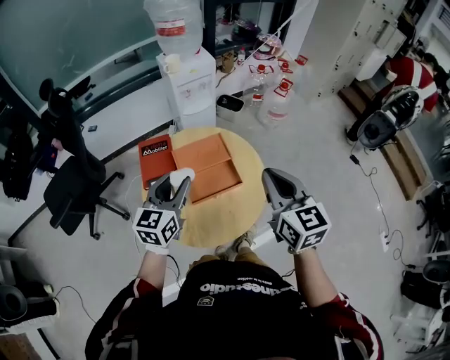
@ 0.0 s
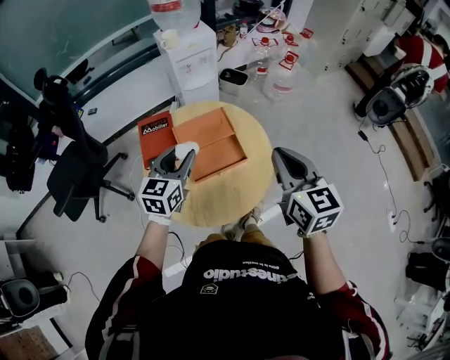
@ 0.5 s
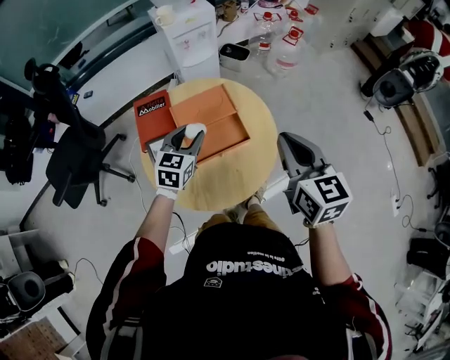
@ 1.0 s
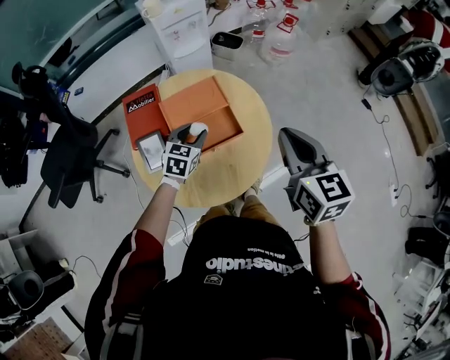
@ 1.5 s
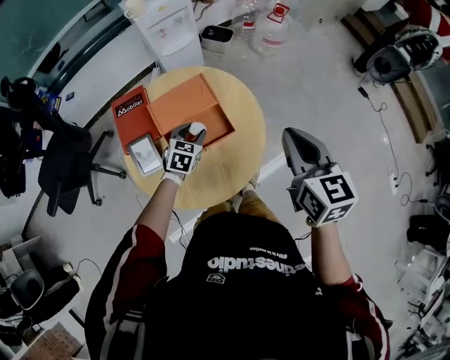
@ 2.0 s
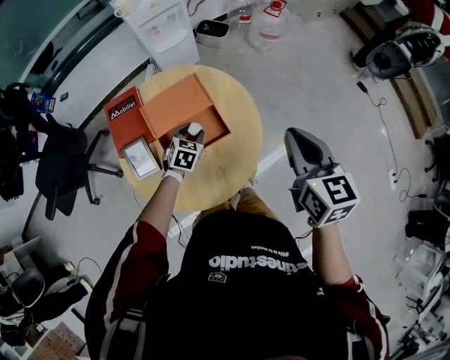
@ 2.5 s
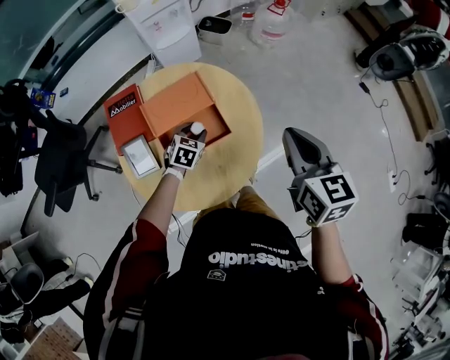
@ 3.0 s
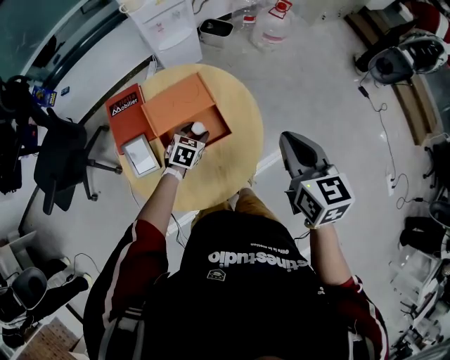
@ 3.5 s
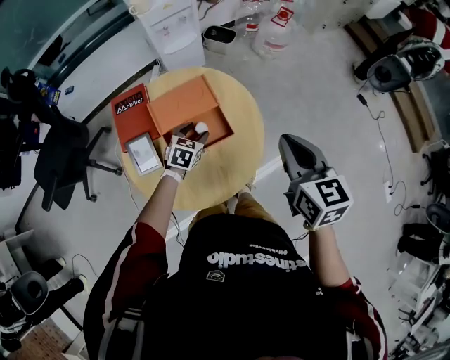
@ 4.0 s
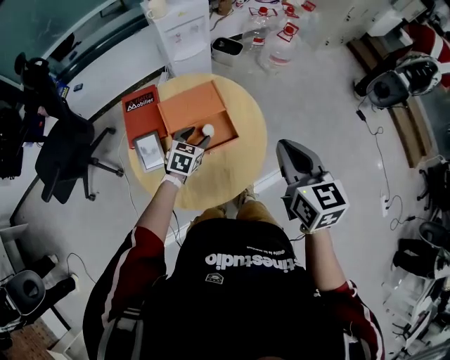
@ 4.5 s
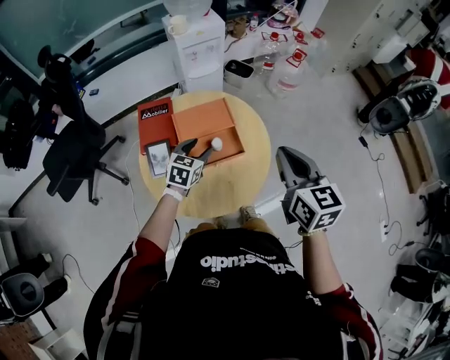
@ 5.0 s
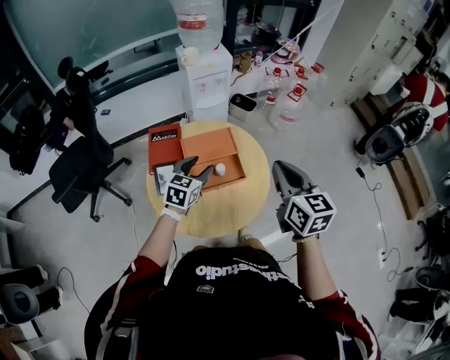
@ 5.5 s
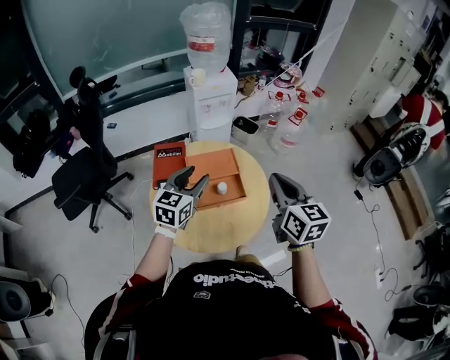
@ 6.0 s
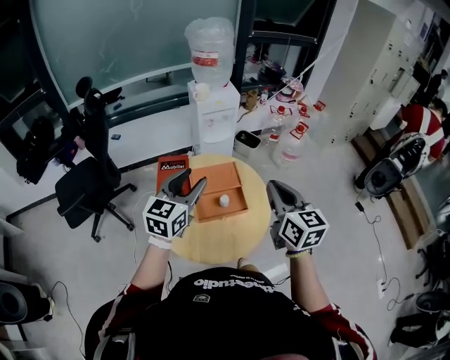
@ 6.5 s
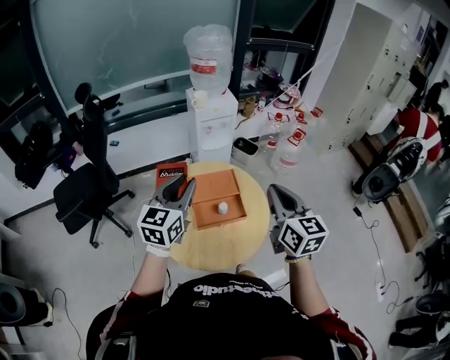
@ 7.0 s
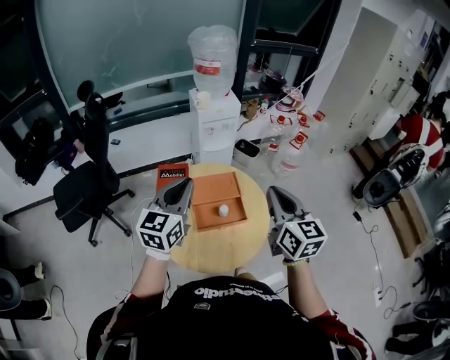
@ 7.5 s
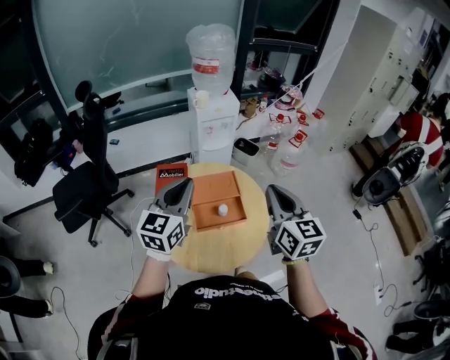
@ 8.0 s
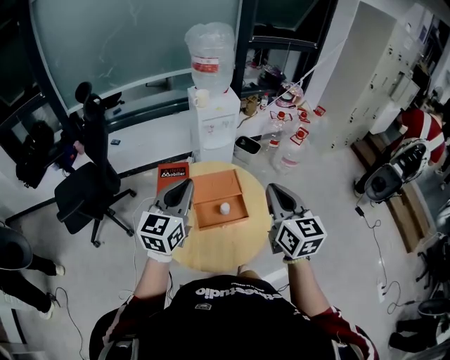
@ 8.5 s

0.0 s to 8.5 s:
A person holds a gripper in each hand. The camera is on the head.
0.0 to 2.0 s: The right gripper moves to the right and downward, approximately 10 cm. Meanwhile the left gripper shifts some 25 cm downward, and tips its fingers downward by roughly 30 degrees.
4.0 to 6.5 s: The right gripper shifts roughly 15 cm upward and to the left. The left gripper goes roughly 35 cm upward, and angles its fingers upward, by roughly 40 degrees.
6.5 to 8.5 s: The left gripper closes up.

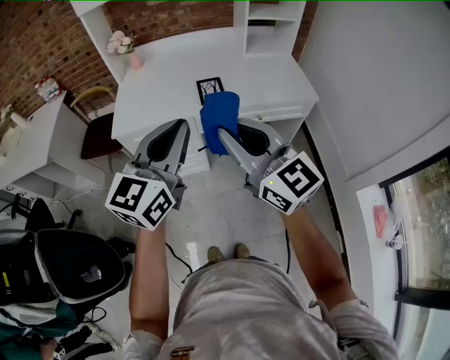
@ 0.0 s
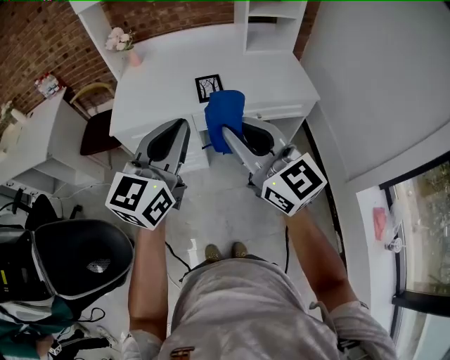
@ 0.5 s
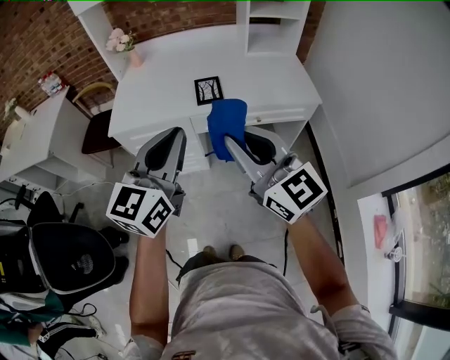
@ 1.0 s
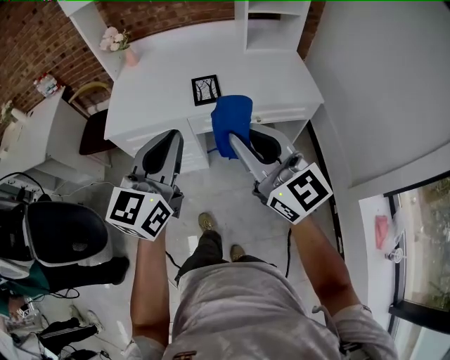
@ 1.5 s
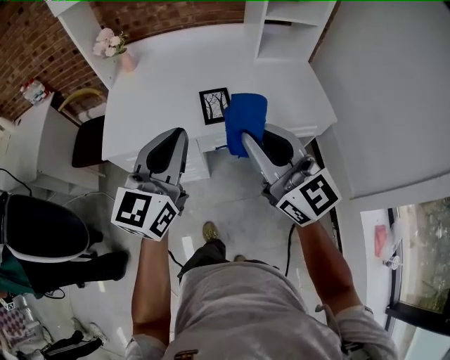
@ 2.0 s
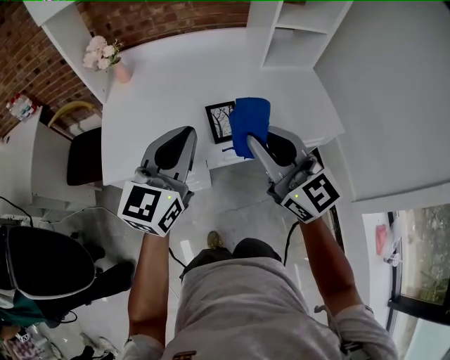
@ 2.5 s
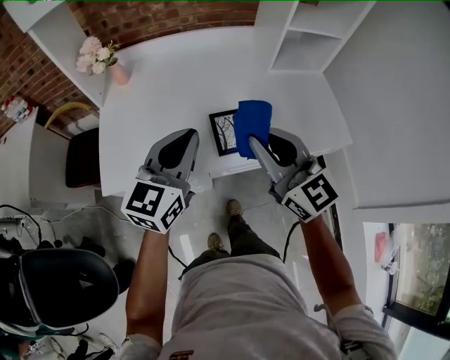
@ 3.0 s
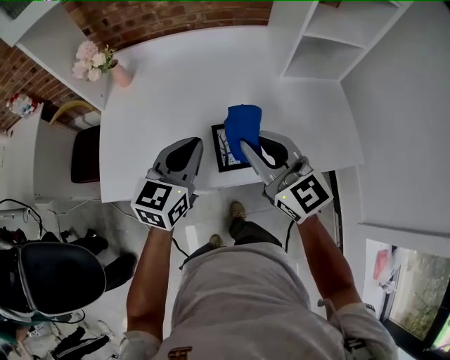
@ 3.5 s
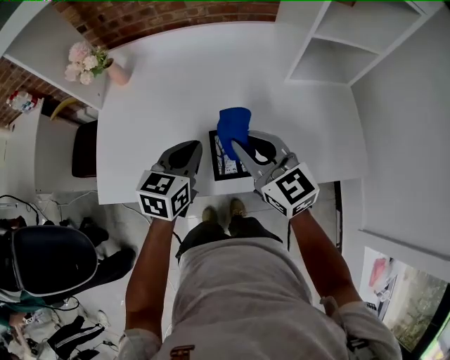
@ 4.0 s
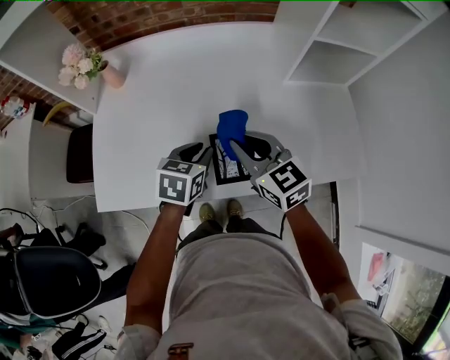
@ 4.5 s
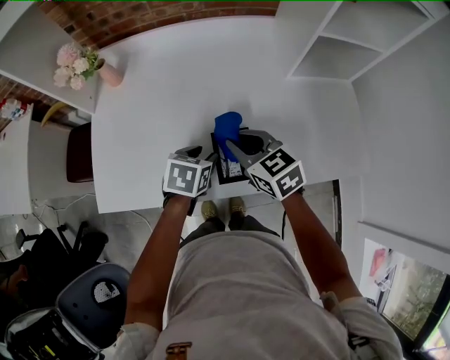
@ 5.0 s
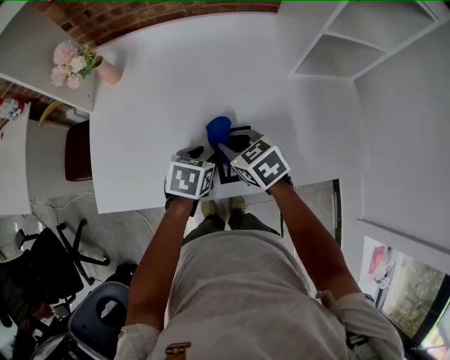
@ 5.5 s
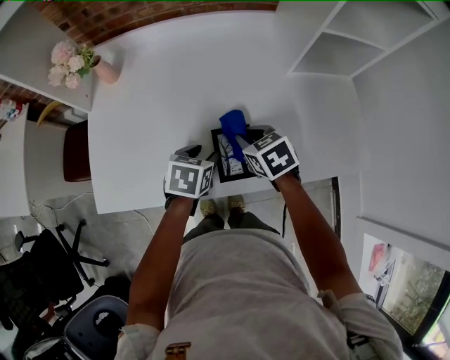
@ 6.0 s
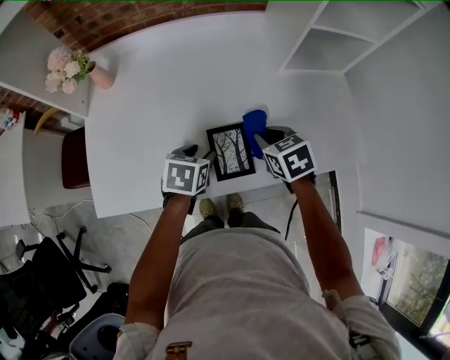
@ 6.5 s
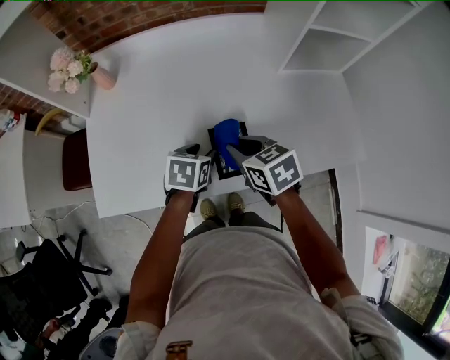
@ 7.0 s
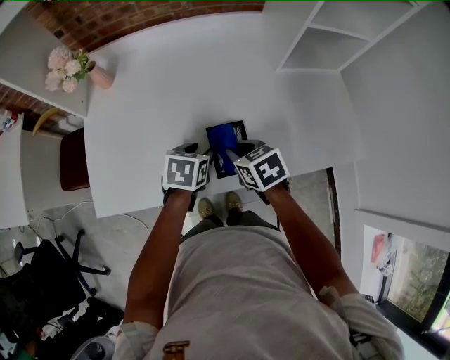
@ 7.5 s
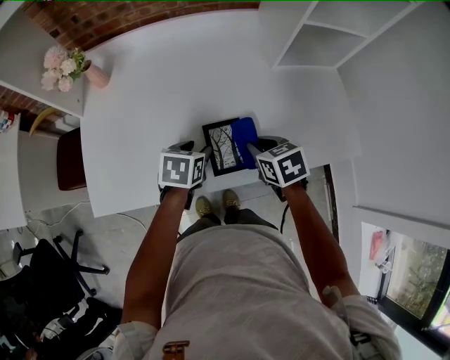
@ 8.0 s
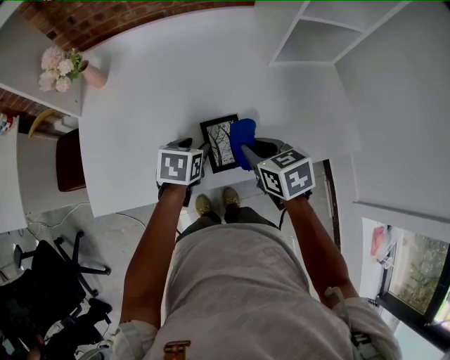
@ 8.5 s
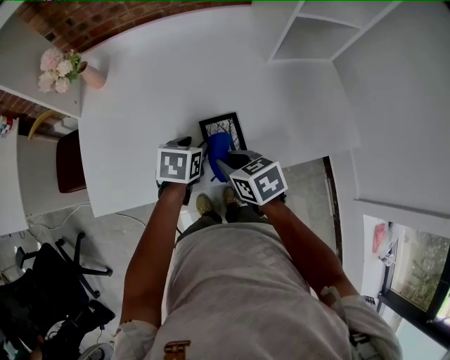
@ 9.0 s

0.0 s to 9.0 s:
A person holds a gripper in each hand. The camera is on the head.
0.0 to 2.0 s: The two grippers go roughly 15 cm forward.
2.0 to 4.5 s: Both grippers travel together forward and downward, some 40 cm. The right gripper rotates some 30 degrees; the left gripper angles its fingers downward, by approximately 50 degrees.
4.5 to 7.0 s: Both grippers move downward, some 5 cm. The right gripper reaches some 10 cm to the right, then returns, and rotates approximately 30 degrees, while the left gripper opens up.
7.0 to 9.0 s: The right gripper heads backward, covering roughly 5 cm, and reaches approximately 5 cm to the right, then returns.

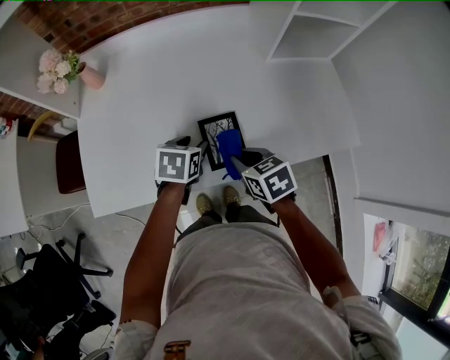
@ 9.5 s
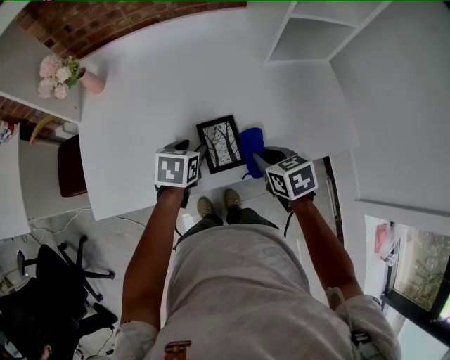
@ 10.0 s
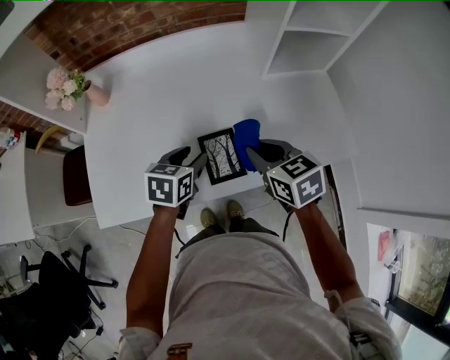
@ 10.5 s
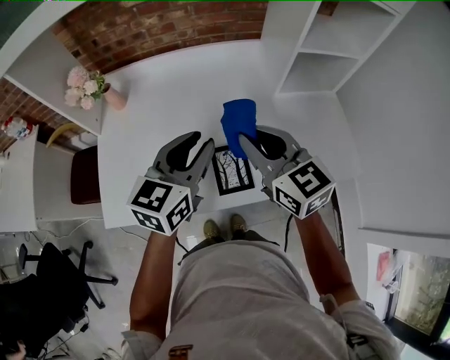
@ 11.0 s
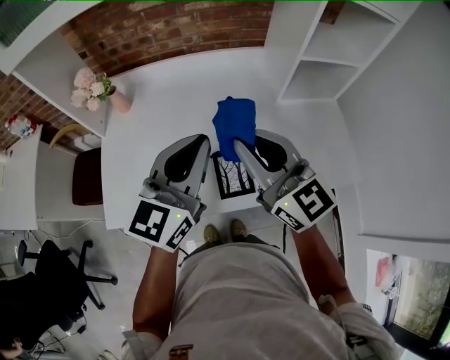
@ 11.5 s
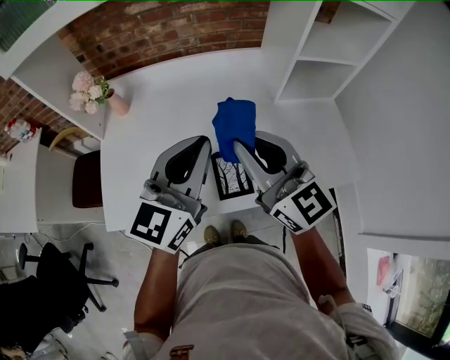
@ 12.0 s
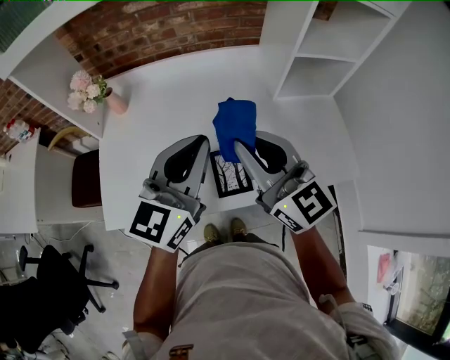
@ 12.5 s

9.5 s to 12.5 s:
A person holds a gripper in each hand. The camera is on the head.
9.5 to 11.0 s: Both grippers move upward, roughly 25 cm. The right gripper tilts its fingers roughly 40 degrees upward. Meanwhile the left gripper angles its fingers upward, by approximately 40 degrees.
11.0 to 12.5 s: The grippers both shift upward by roughly 5 cm. The left gripper closes.

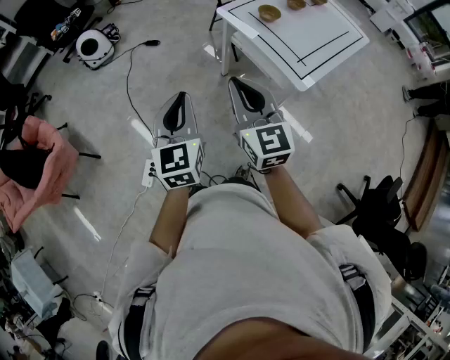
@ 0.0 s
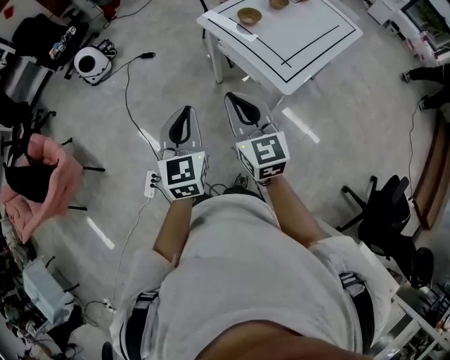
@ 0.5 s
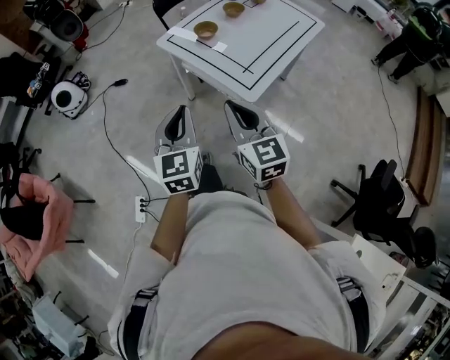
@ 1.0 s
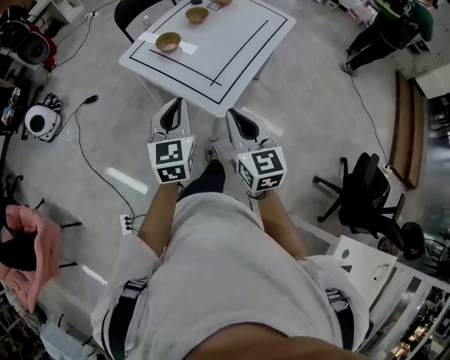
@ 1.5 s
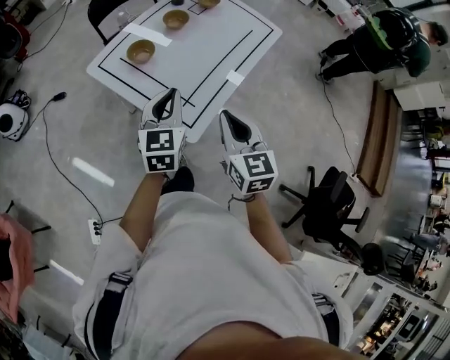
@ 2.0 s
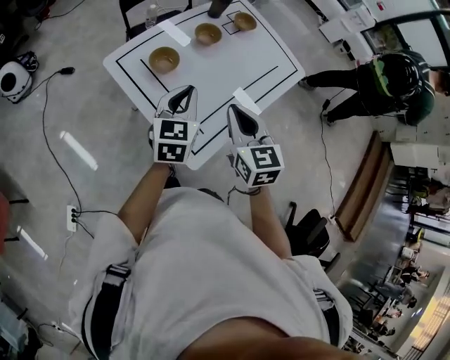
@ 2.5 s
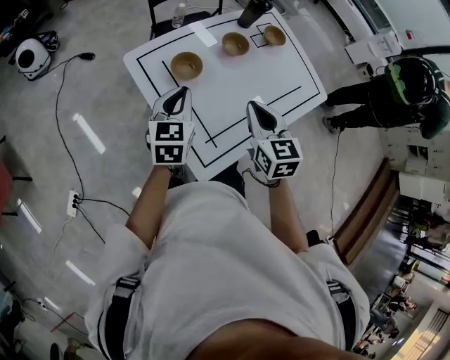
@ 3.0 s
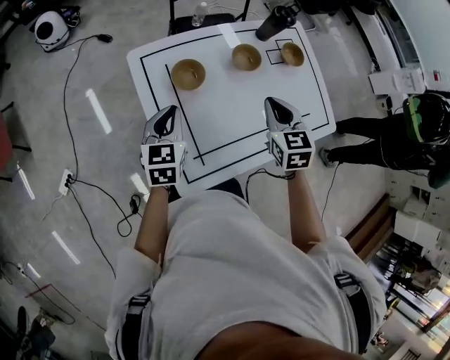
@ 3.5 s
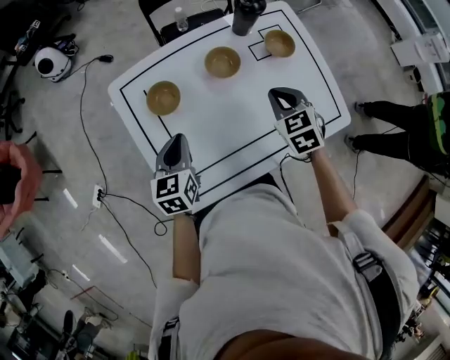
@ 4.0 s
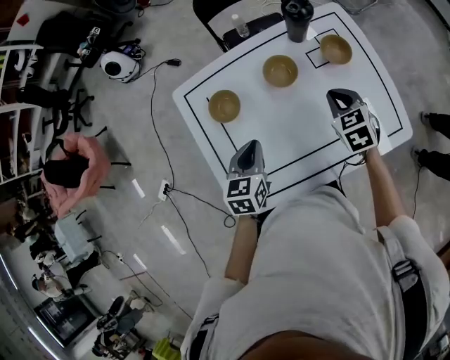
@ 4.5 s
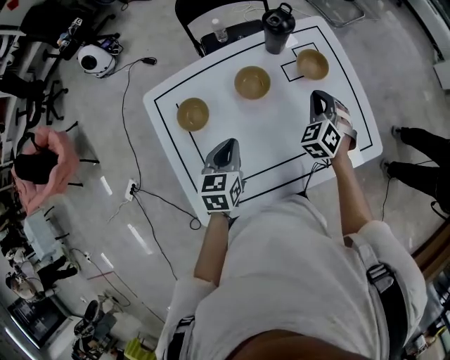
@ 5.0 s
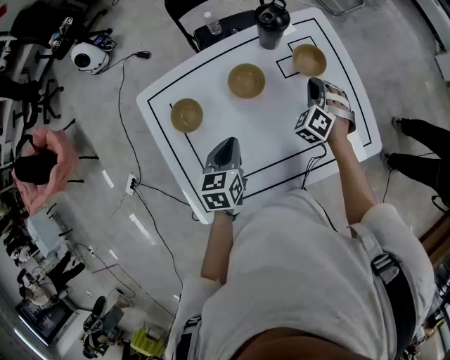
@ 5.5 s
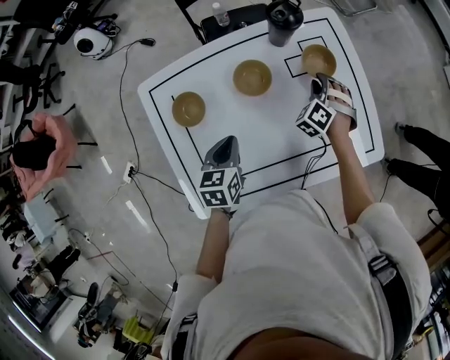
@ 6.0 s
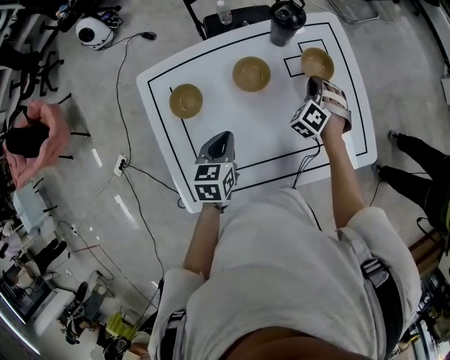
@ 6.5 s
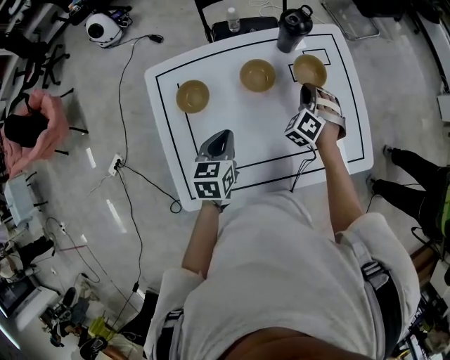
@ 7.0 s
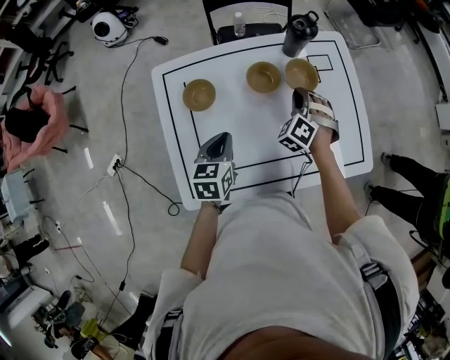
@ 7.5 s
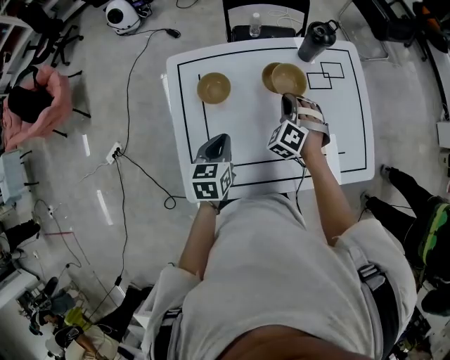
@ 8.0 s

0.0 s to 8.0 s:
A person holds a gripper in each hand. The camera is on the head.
0.0 to 2.0 s: The pair of grippers is taken to the right and forward, about 50 cm. The left gripper swivels about 20 degrees. The right gripper swivels approximately 30 degrees.
2.0 to 4.0 s: The right gripper changes place by some 50 cm, and rotates approximately 50 degrees; the left gripper changes place by approximately 25 cm, and swivels some 40 degrees.
4.0 to 6.0 s: The left gripper moves to the right, forward and downward, approximately 10 cm. The right gripper shifts roughly 20 cm forward, downward and to the right, turns by some 40 degrees, and opens.
6.0 to 8.0 s: The right gripper travels to the left, backward and upward by some 20 cm, and swivels approximately 20 degrees, while the left gripper travels backward and to the left by roughly 10 cm.
